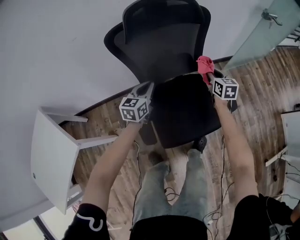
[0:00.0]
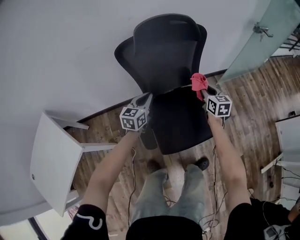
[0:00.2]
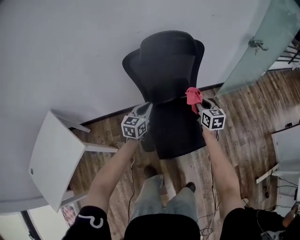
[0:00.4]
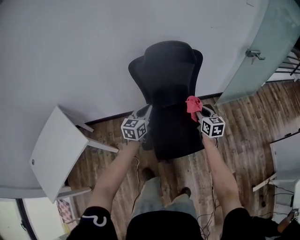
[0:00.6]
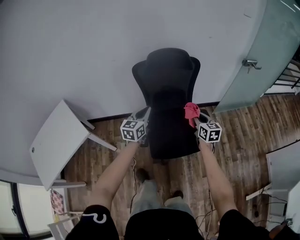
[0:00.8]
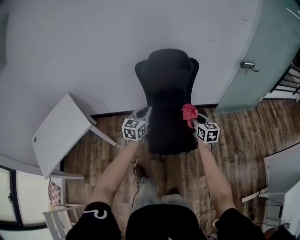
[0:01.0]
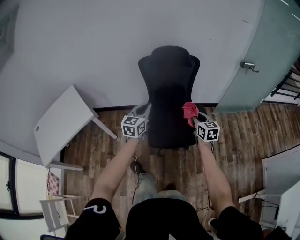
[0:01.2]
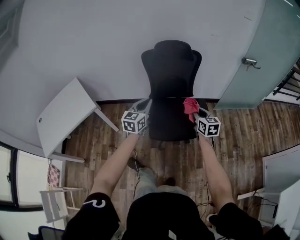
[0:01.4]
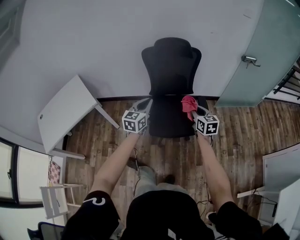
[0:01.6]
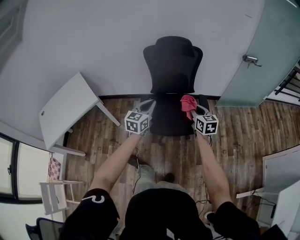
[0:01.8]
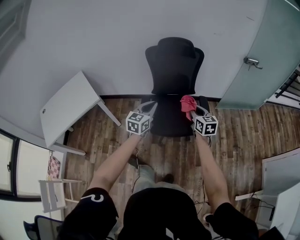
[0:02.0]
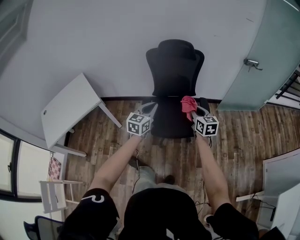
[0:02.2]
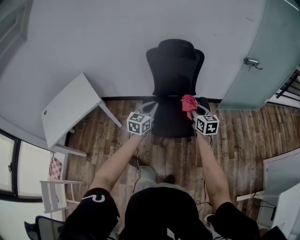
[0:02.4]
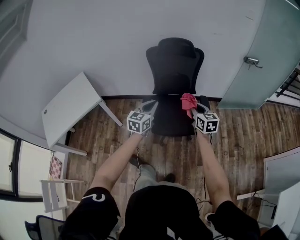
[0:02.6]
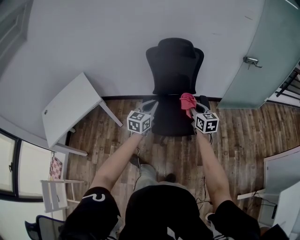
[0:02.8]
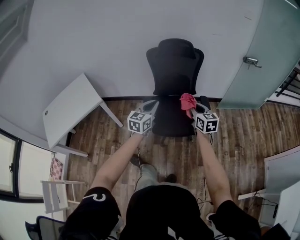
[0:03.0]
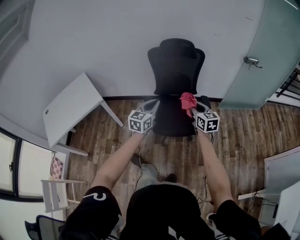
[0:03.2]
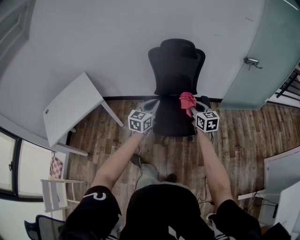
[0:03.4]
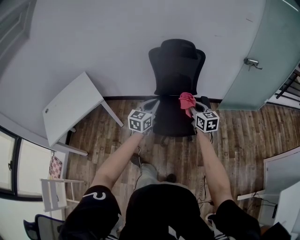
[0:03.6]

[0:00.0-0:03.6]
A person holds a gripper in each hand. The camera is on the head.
0:00.0 to 0:01.8: Both grippers move backward and upward, approximately 40 cm. The right gripper changes its angle by roughly 20 degrees.
0:01.8 to 0:03.6: The right gripper shifts by about 5 cm.

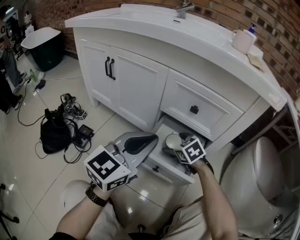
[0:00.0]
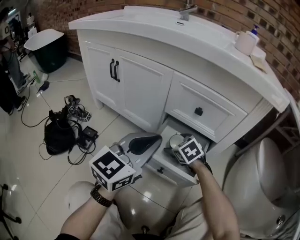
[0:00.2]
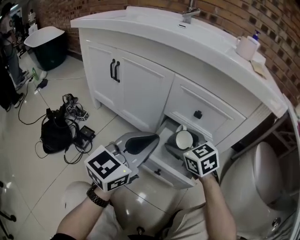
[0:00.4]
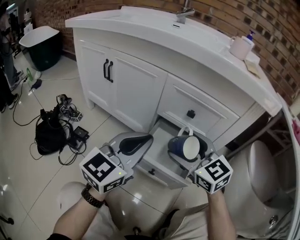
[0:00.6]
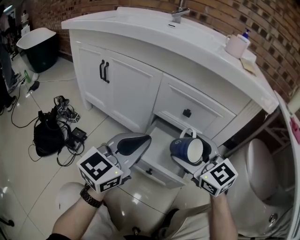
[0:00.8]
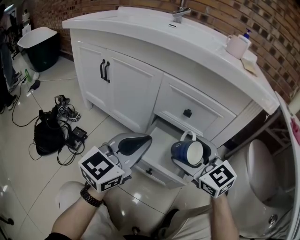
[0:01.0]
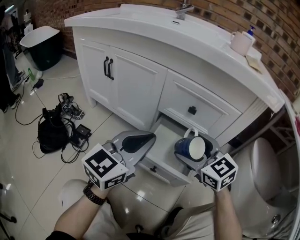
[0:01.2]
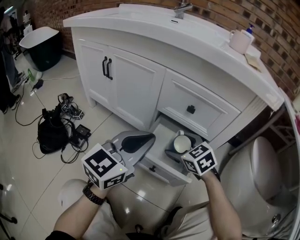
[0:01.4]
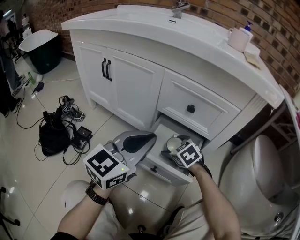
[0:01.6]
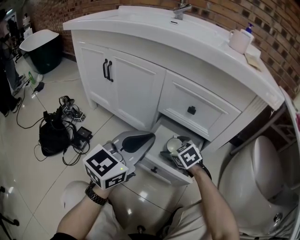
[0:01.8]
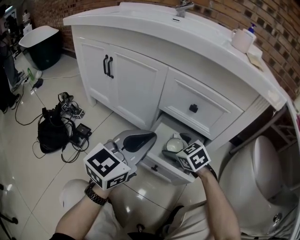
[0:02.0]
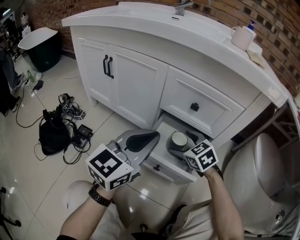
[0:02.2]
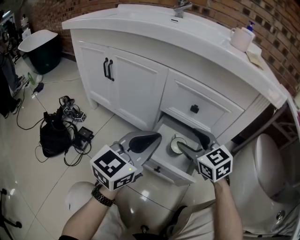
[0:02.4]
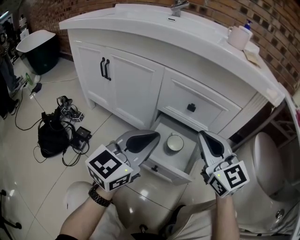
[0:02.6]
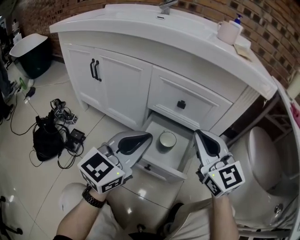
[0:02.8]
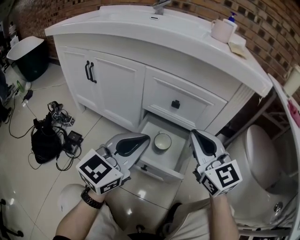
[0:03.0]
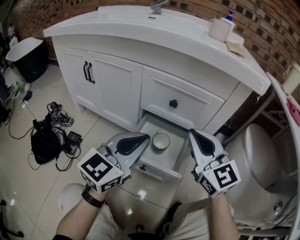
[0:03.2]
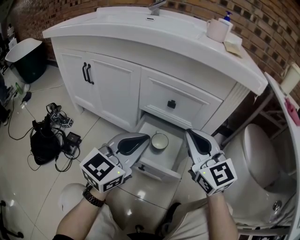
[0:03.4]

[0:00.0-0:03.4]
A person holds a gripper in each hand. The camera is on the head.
0:00.0 to 0:01.6: The right gripper goes upward and returns, approximately 20 cm each way.
0:01.6 to 0:03.4: The right gripper moves upward, some 25 cm, points its fingers some 50 degrees further upward, and closes its fingers.

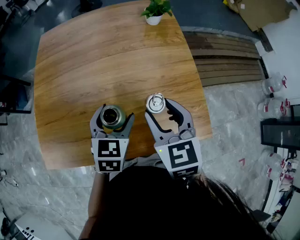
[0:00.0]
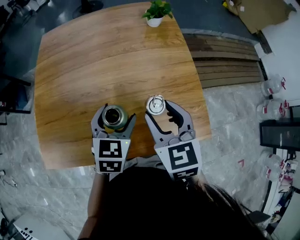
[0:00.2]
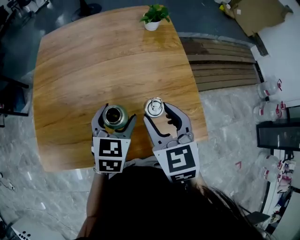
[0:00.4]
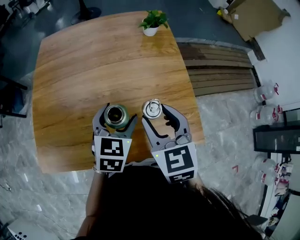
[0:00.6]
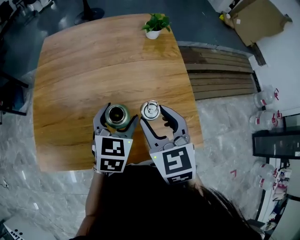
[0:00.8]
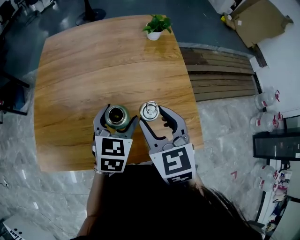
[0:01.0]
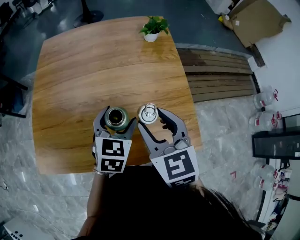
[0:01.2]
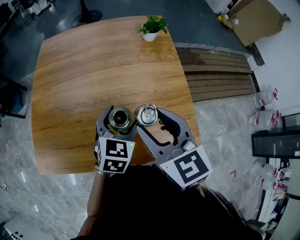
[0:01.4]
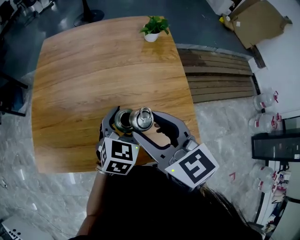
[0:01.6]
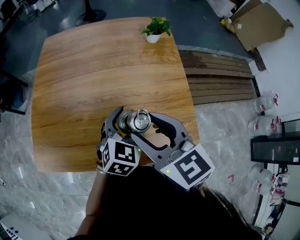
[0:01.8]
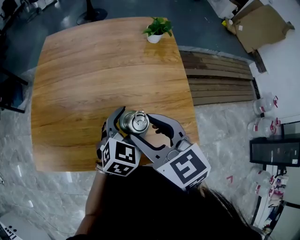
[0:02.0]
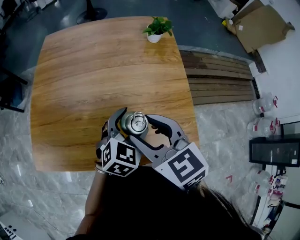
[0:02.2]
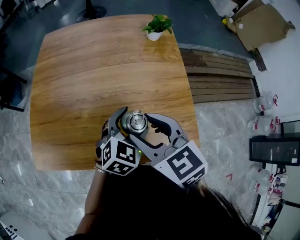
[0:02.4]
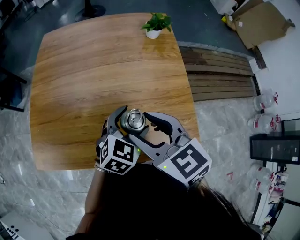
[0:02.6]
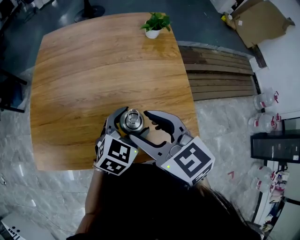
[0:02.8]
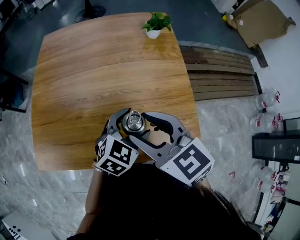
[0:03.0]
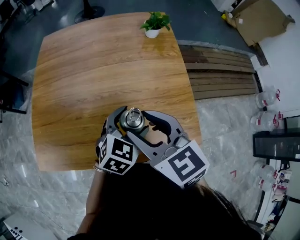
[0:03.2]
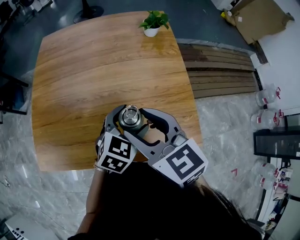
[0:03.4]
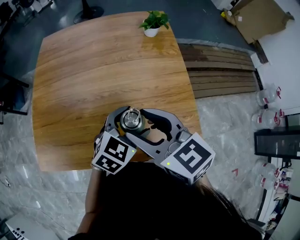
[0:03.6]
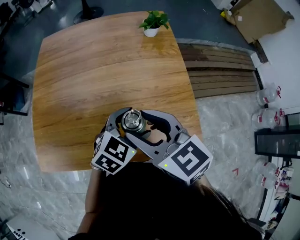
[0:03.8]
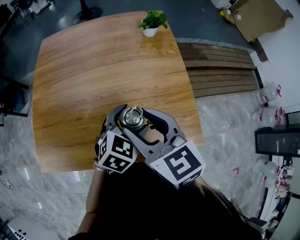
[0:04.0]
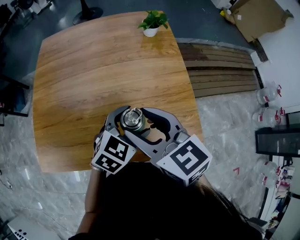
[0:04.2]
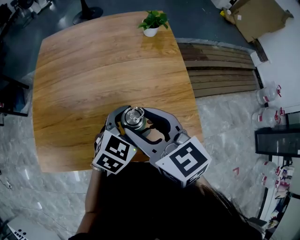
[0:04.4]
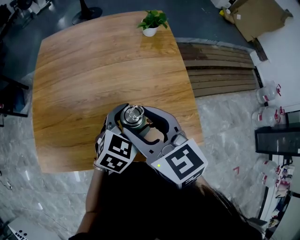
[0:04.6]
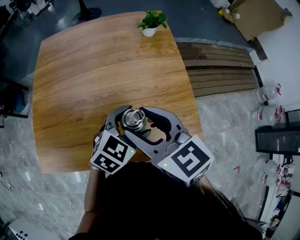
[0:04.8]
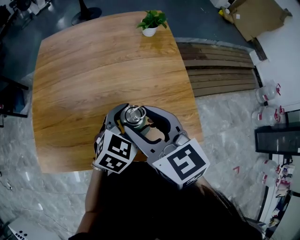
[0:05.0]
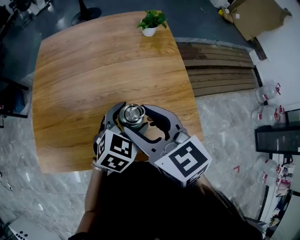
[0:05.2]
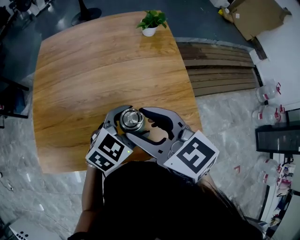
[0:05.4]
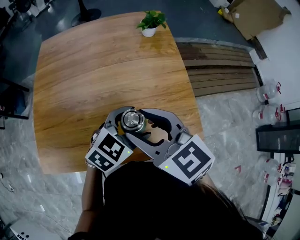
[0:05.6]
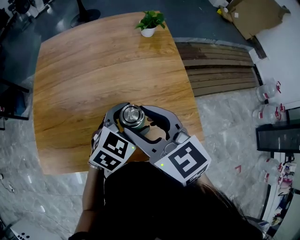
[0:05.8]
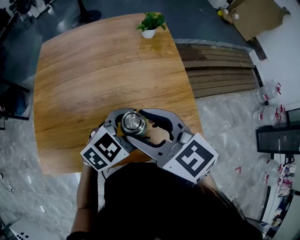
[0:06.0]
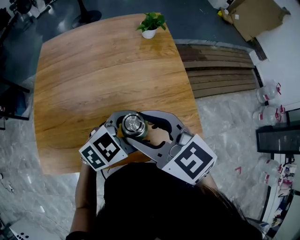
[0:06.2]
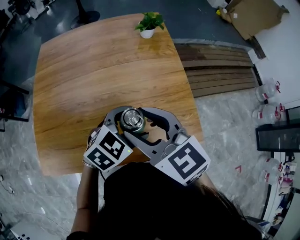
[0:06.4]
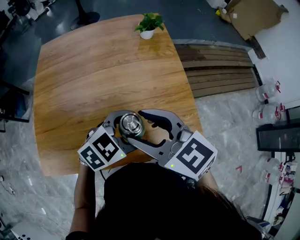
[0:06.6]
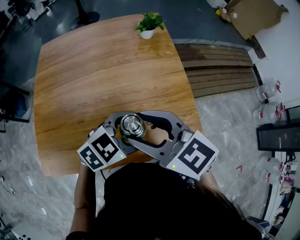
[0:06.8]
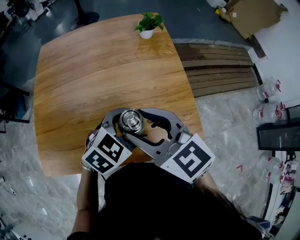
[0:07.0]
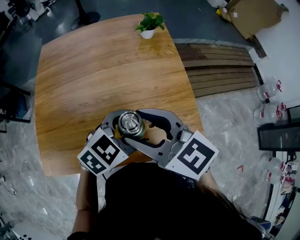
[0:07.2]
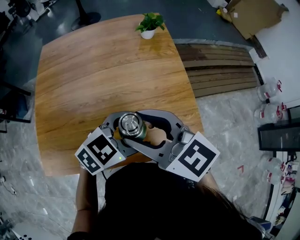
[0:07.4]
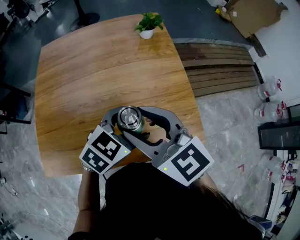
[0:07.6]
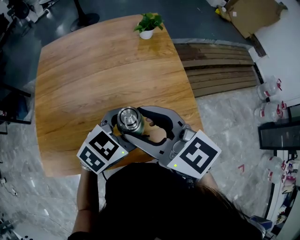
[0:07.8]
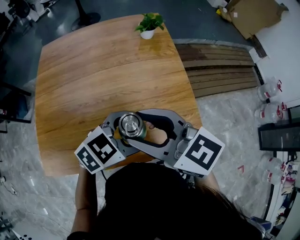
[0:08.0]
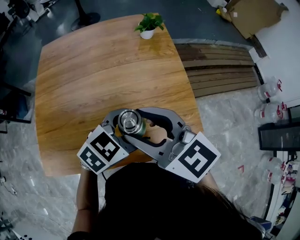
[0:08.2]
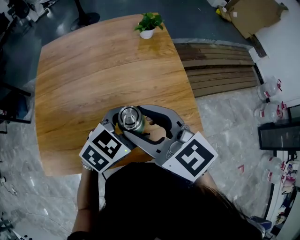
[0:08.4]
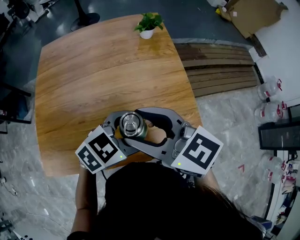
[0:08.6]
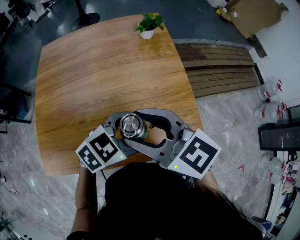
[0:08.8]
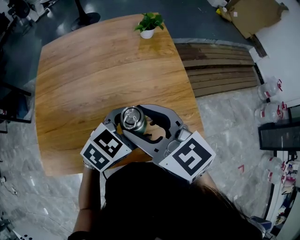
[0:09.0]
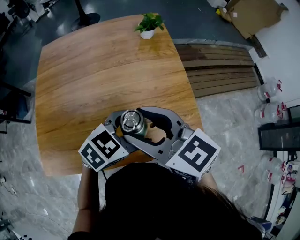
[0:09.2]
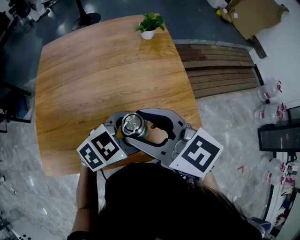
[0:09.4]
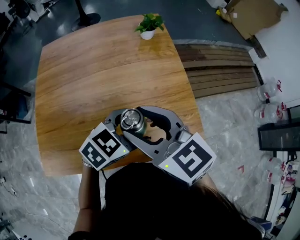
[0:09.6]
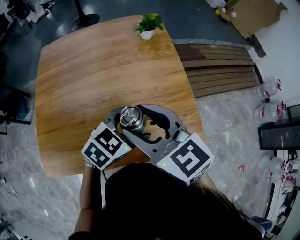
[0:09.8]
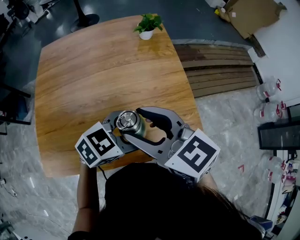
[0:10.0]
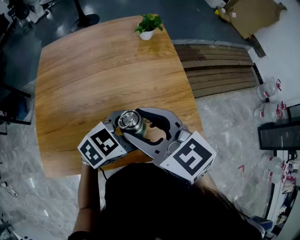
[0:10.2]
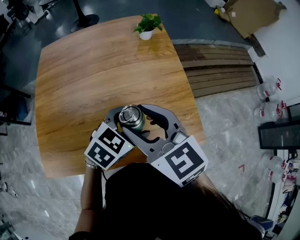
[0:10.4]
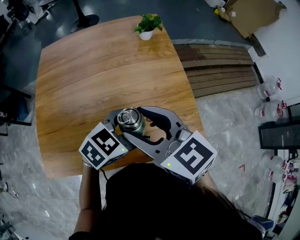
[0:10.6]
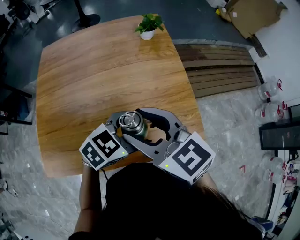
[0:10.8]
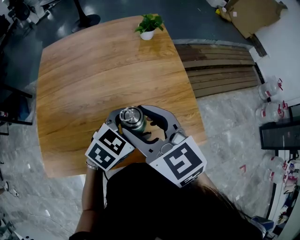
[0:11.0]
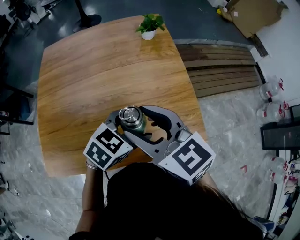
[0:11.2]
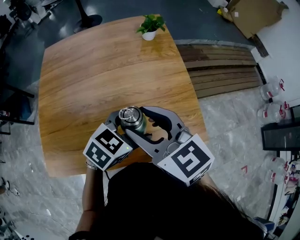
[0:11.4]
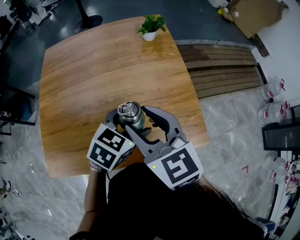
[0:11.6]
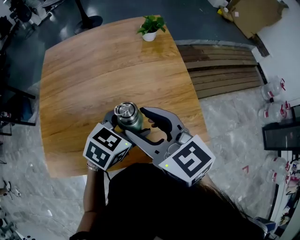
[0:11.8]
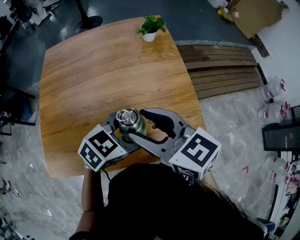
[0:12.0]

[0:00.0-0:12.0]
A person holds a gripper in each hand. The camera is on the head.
0:00.0 to 0:01.6: The left gripper shifts roughly 5 cm to the right. The right gripper goes some 10 cm upward, and turns by approximately 20 degrees.
0:01.6 to 0:03.0: The grippers stay close to where they were, moving slightly.
0:03.0 to 0:04.4: The grippers move only a little.
0:04.4 to 0:06.0: There are only small adjustments of the grippers.
0:06.0 to 0:12.0: The grippers stay close to where they were, moving slightly.

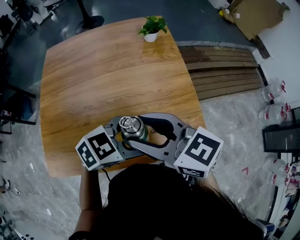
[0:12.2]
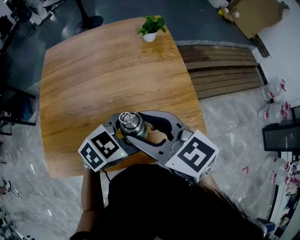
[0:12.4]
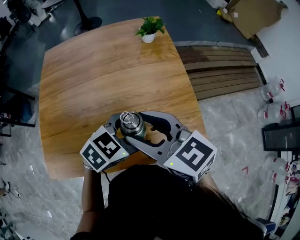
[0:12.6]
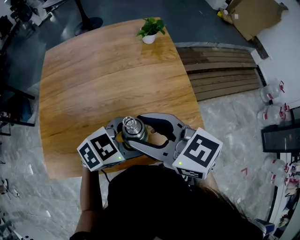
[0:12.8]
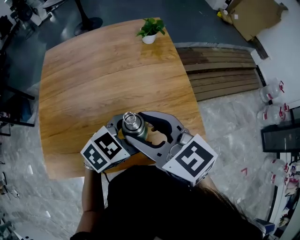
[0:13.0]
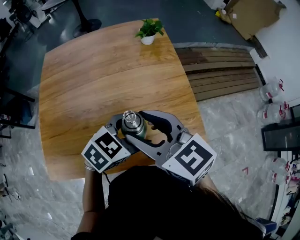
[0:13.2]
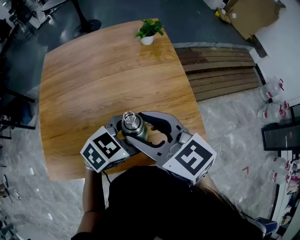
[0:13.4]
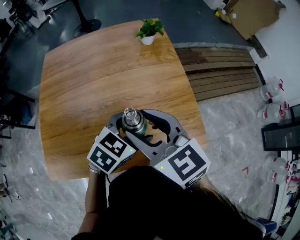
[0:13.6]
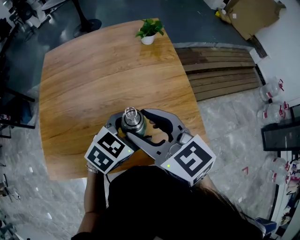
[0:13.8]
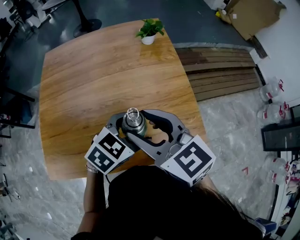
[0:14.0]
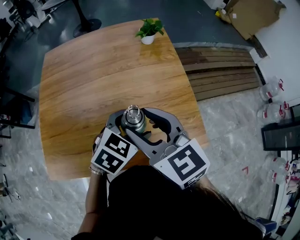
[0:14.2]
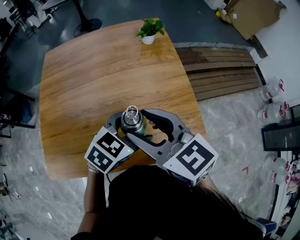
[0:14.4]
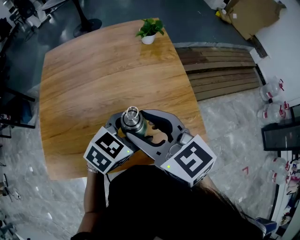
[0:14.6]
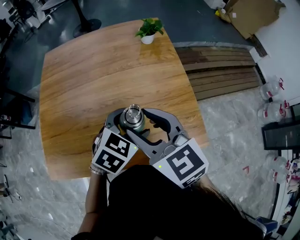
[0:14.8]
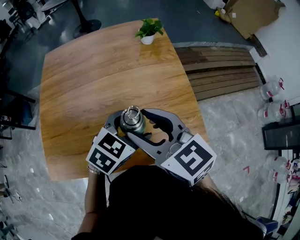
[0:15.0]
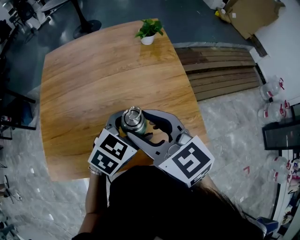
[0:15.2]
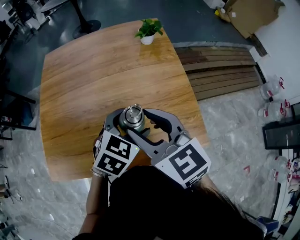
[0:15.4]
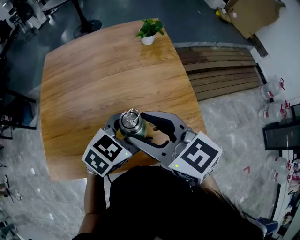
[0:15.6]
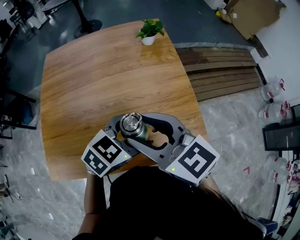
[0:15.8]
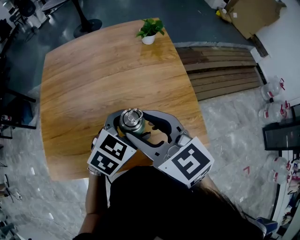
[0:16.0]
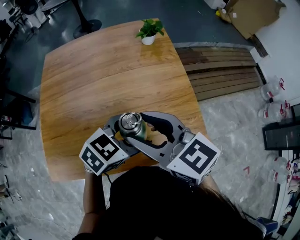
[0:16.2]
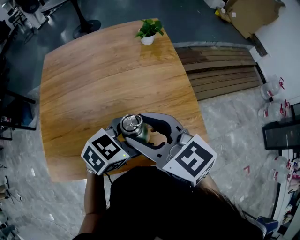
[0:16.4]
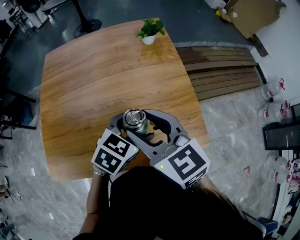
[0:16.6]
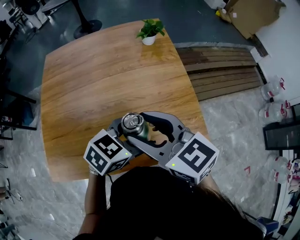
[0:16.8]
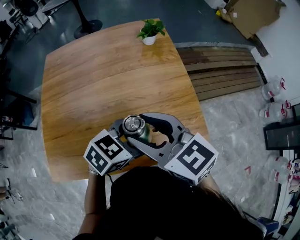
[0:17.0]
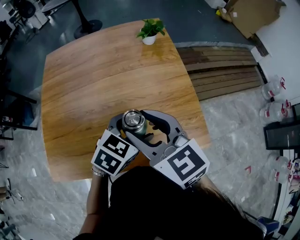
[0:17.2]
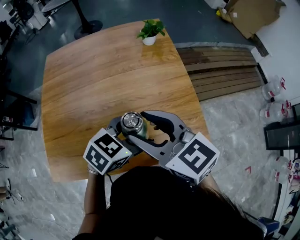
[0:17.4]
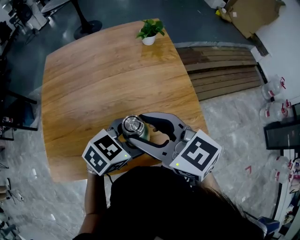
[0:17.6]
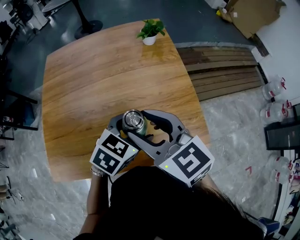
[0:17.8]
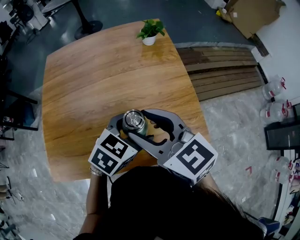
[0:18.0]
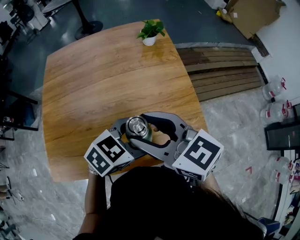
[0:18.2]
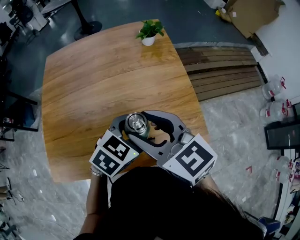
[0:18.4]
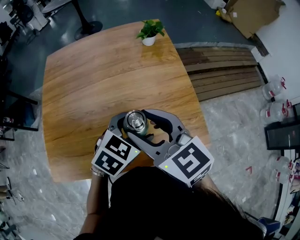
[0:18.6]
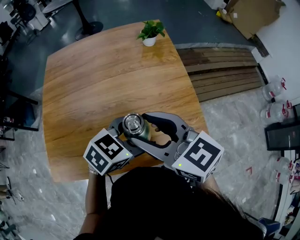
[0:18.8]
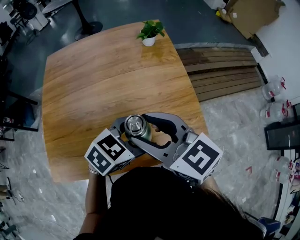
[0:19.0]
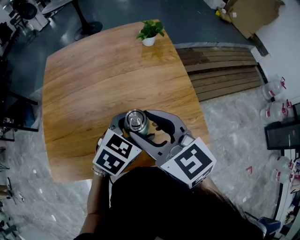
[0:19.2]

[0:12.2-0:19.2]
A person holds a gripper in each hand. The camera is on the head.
0:12.2 to 0:13.6: The right gripper swivels roughly 20 degrees; the left gripper swivels some 20 degrees.
0:13.6 to 0:19.2: The grippers move only a little.
